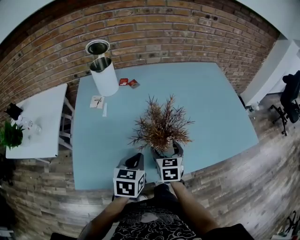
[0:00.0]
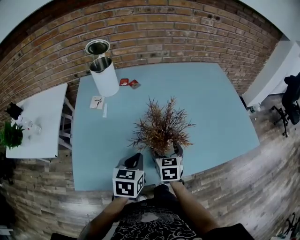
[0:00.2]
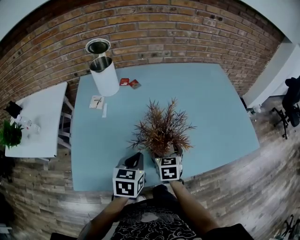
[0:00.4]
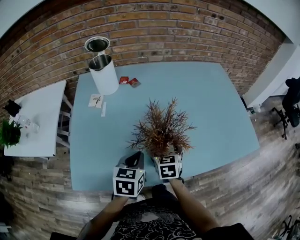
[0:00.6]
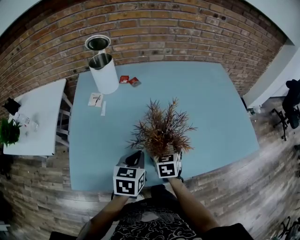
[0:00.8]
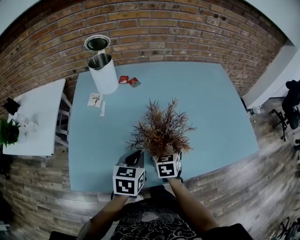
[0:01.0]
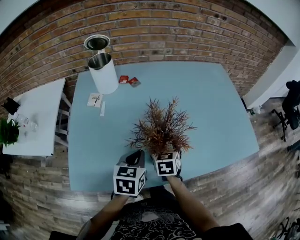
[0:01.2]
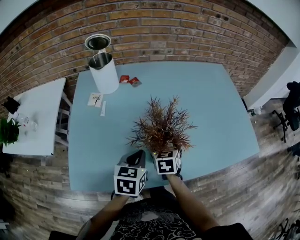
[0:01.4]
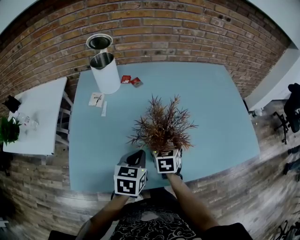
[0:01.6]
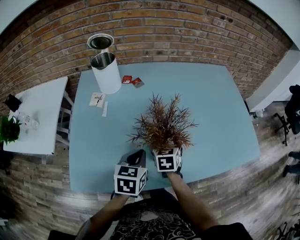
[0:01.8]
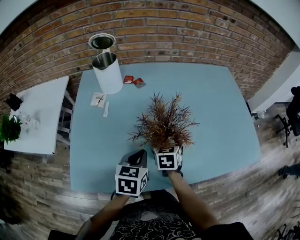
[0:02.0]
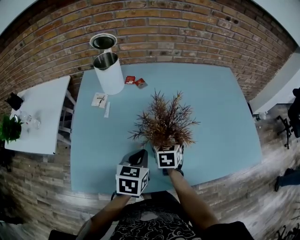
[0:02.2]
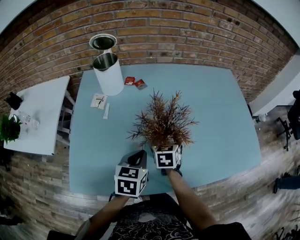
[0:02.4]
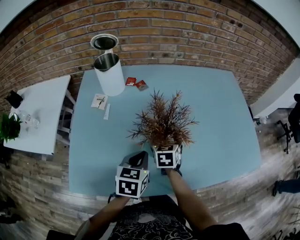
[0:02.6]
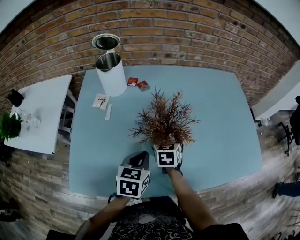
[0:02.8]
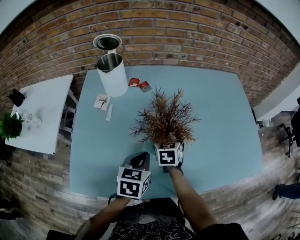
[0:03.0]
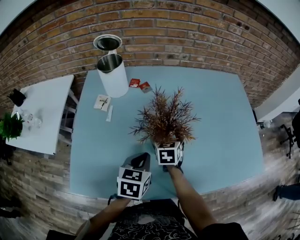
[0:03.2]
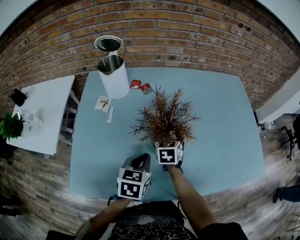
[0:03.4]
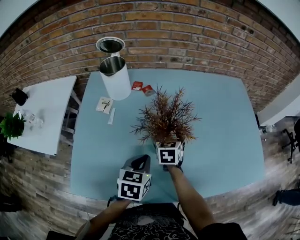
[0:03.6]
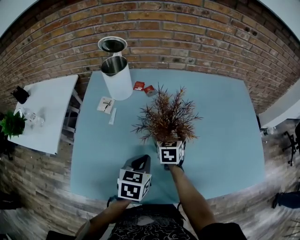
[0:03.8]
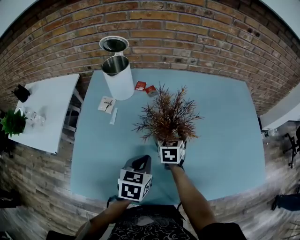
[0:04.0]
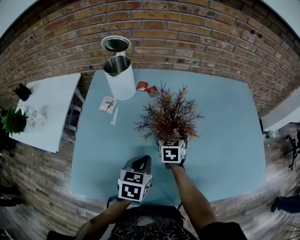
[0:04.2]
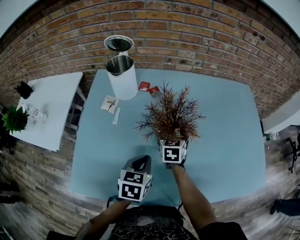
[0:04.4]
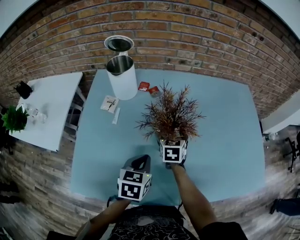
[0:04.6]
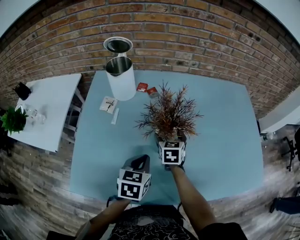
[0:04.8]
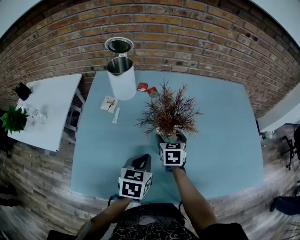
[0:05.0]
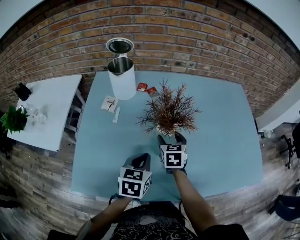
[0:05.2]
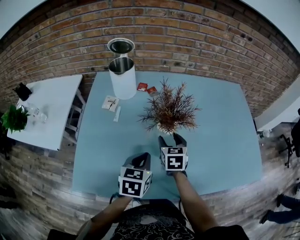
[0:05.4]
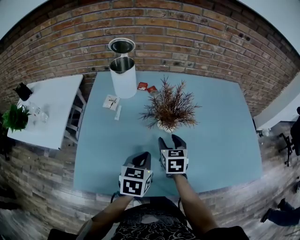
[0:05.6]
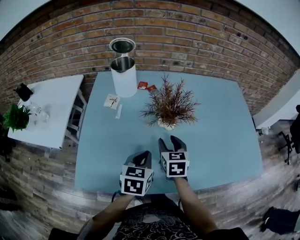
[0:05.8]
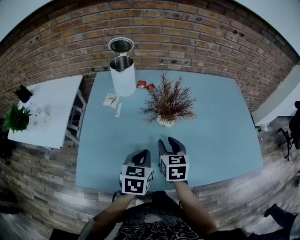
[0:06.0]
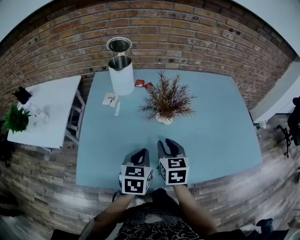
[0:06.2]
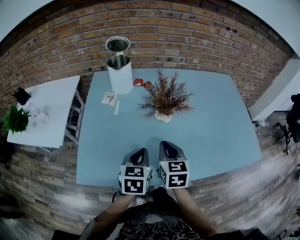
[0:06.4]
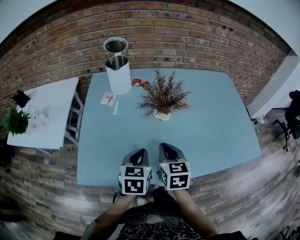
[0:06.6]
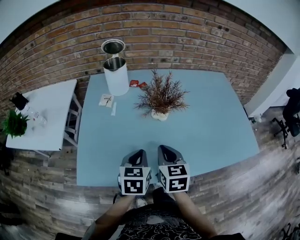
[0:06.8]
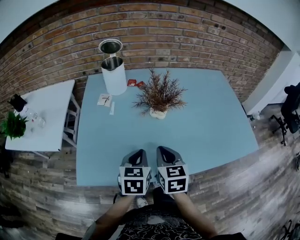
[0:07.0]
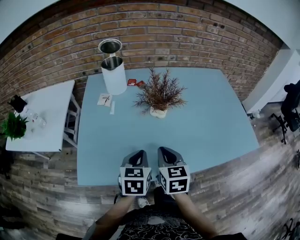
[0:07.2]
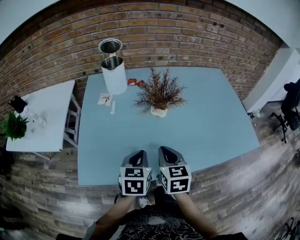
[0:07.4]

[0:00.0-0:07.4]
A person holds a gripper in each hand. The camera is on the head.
0:00.0 to 0:01.4: The right gripper moves roughly 5 cm.
0:01.4 to 0:03.0: The right gripper goes some 10 cm forward.
0:03.0 to 0:04.4: The right gripper moves forward, about 5 cm.
0:04.4 to 0:06.0: The right gripper moves backward and upward, approximately 15 cm, and closes up. Meanwhile the left gripper travels backward by about 5 cm.
0:06.0 to 0:07.4: The left gripper is displaced backward by approximately 5 cm, while the right gripper is displaced backward by some 10 cm.

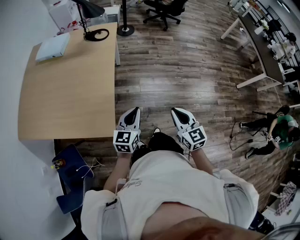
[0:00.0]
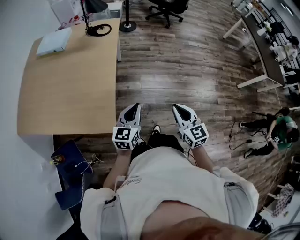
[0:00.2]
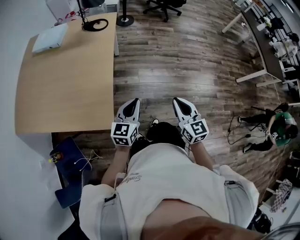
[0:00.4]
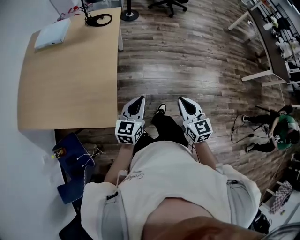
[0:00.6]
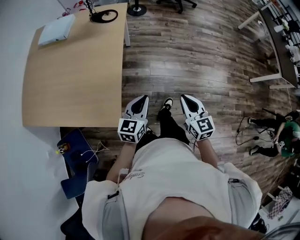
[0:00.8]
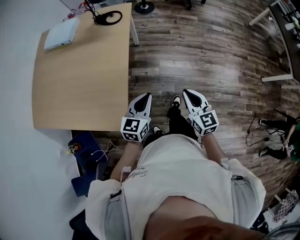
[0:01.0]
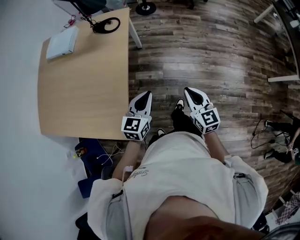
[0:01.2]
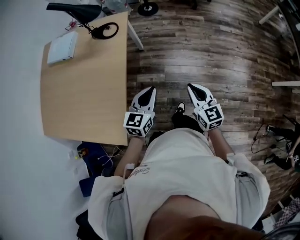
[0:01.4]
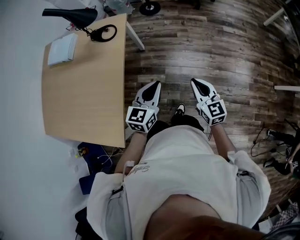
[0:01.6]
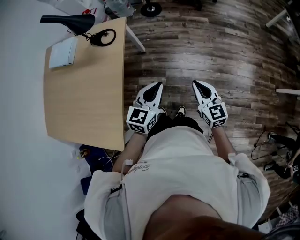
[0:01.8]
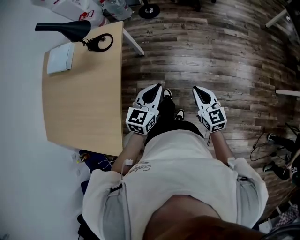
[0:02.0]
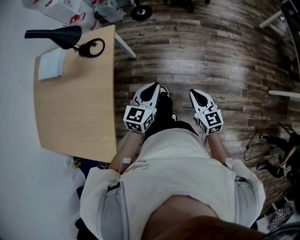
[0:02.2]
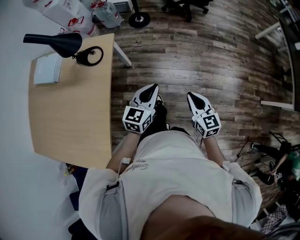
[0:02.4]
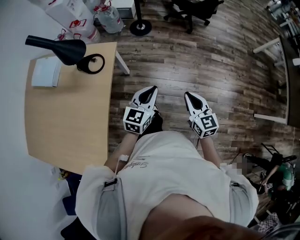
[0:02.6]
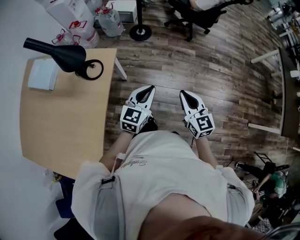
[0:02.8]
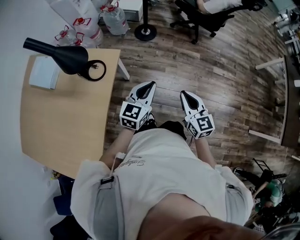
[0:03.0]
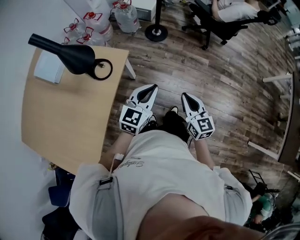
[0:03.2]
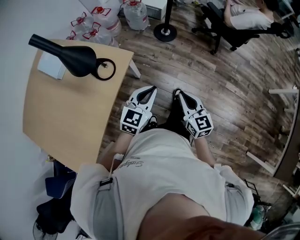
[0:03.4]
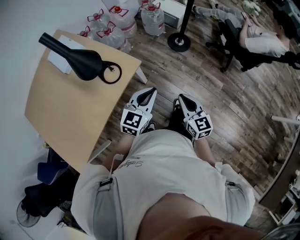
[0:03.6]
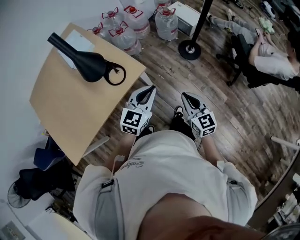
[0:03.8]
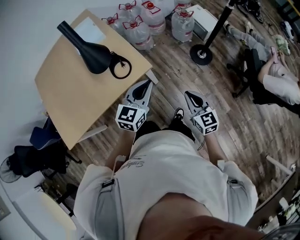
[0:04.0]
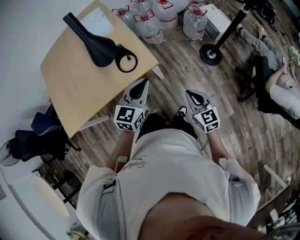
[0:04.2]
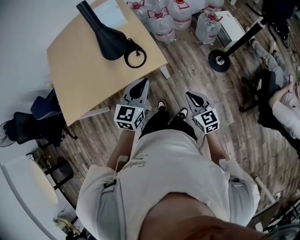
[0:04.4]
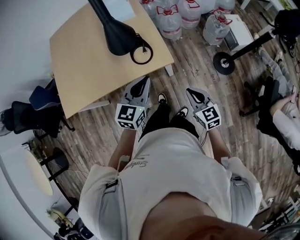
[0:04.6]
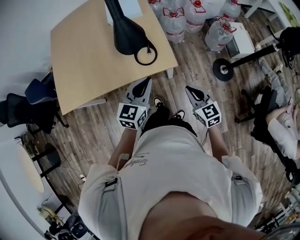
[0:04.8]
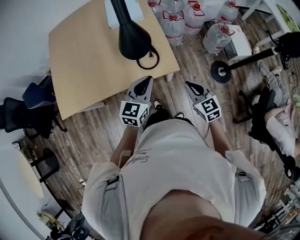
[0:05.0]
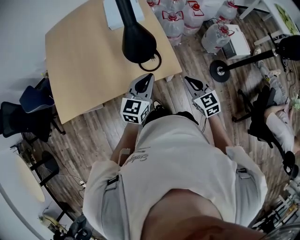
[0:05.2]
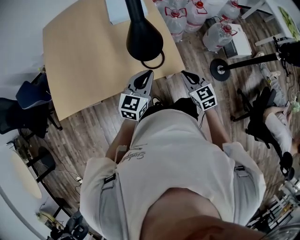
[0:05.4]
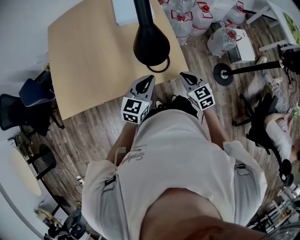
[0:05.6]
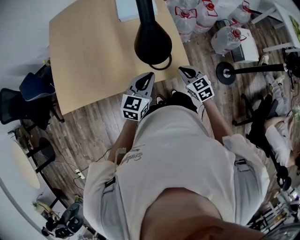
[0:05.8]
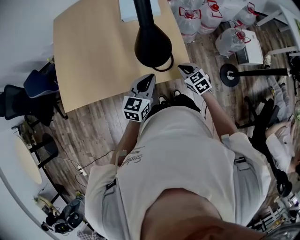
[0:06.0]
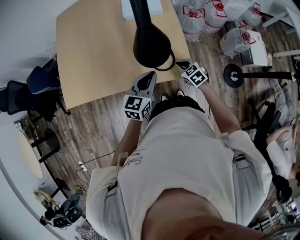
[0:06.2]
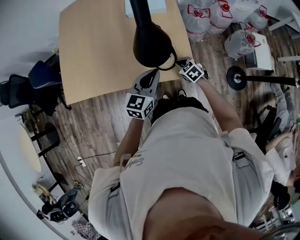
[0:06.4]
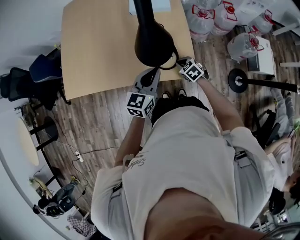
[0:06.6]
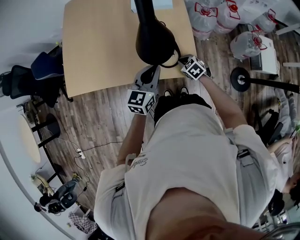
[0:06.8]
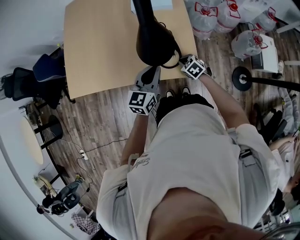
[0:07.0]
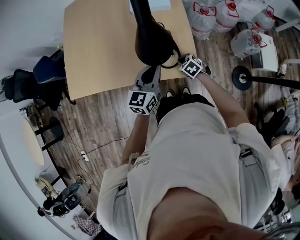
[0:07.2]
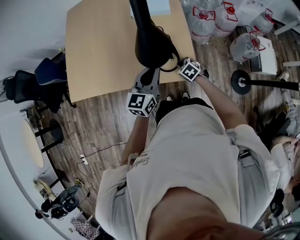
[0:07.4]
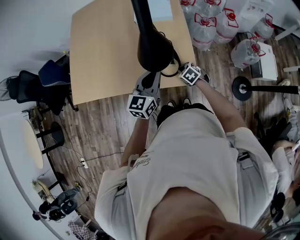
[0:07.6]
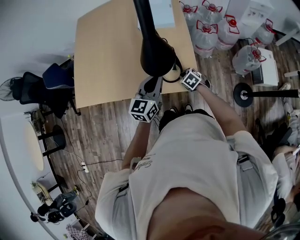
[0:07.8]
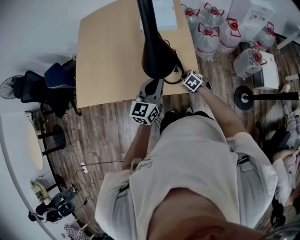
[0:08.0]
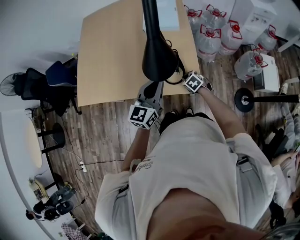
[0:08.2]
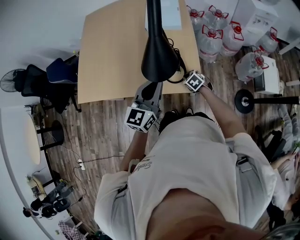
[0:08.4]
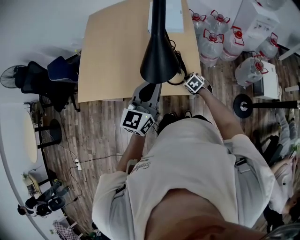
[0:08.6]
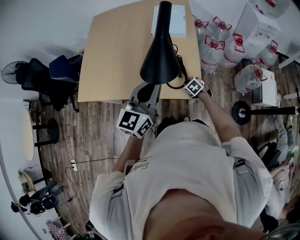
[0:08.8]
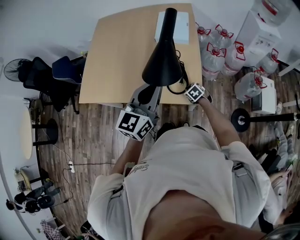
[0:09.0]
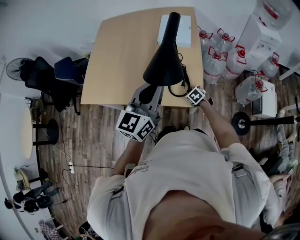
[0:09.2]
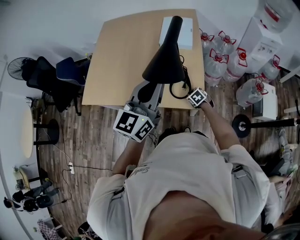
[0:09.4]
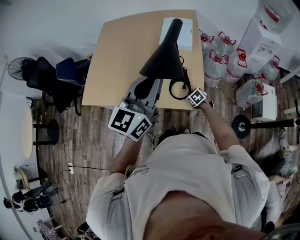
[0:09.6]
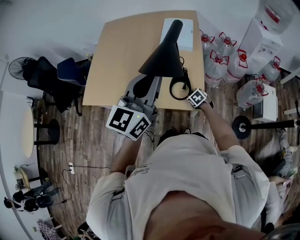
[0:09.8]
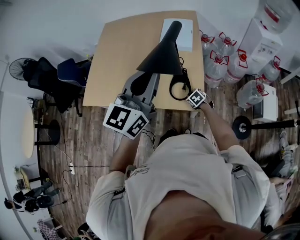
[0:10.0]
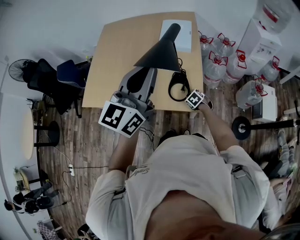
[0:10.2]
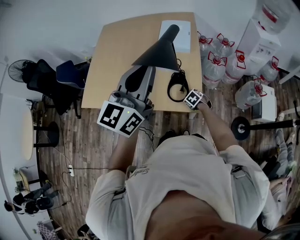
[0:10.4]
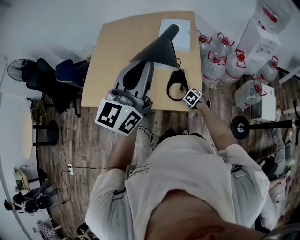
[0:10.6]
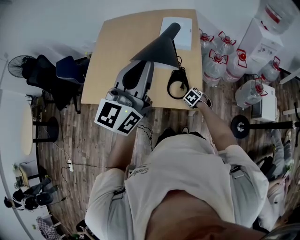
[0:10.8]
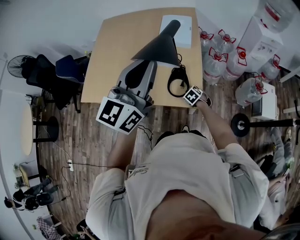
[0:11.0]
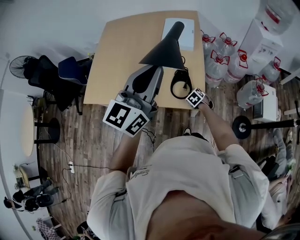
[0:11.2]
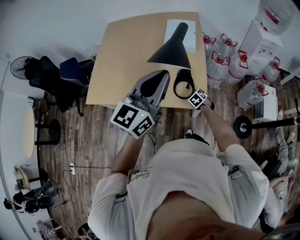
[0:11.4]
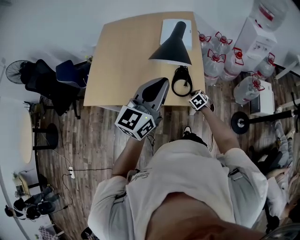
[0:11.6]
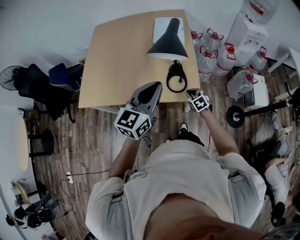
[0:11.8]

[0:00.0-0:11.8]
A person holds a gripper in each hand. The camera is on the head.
0:00.0 to 0:01.4: Both grippers travel together forward, approximately 25 cm.
0:01.4 to 0:03.0: Both grippers travel together forward, approximately 40 cm.
0:03.0 to 0:04.4: The left gripper ends up roughly 20 cm from where it was, and swivels approximately 60 degrees. The right gripper moves some 30 cm, and rotates about 60 degrees.
0:04.4 to 0:06.0: The left gripper moves forward, to the left and downward, roughly 20 cm; the right gripper travels forward and to the left by some 30 cm, and turns by about 30 degrees.
0:06.0 to 0:07.4: The right gripper shifts about 10 cm downward, and turns by some 20 degrees.
0:07.4 to 0:08.8: The left gripper moves upward, about 15 cm.
0:08.8 to 0:10.4: The left gripper moves upward, about 15 cm.
0:10.4 to 0:11.8: The right gripper is displaced upward and backward by approximately 10 cm, and changes its angle by roughly 20 degrees. The left gripper travels downward, backward and to the left by about 15 cm.

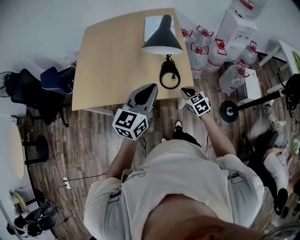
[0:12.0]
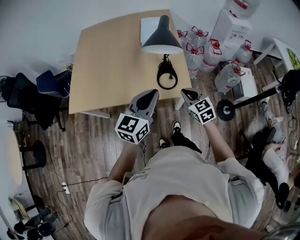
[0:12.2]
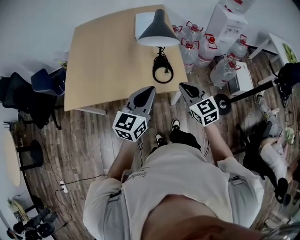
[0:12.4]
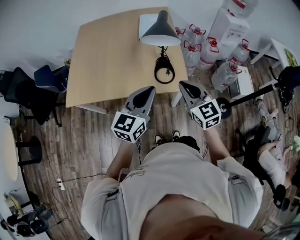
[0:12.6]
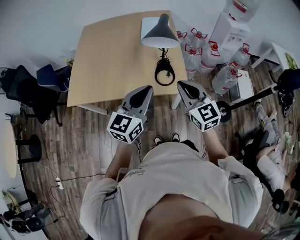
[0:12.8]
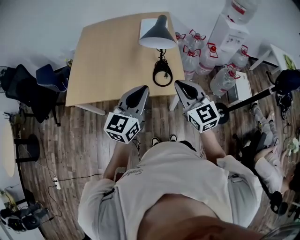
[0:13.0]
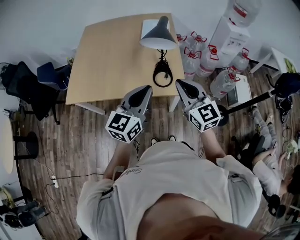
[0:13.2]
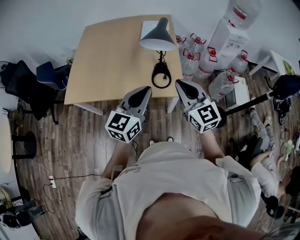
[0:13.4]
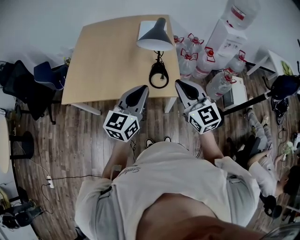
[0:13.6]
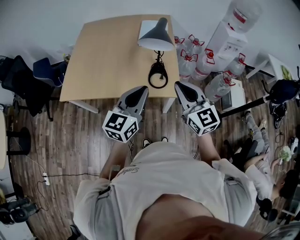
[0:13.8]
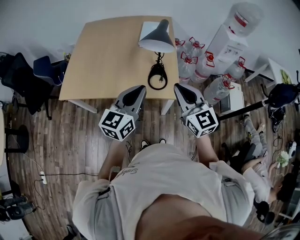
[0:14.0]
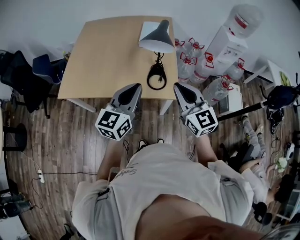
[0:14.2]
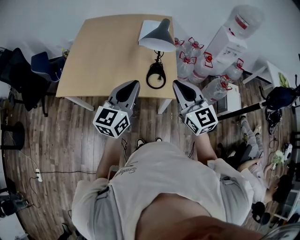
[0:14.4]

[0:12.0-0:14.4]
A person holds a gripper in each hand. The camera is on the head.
0:12.0 to 0:13.2: The right gripper heads upward and backward, covering about 25 cm, and tips its fingers upward by about 30 degrees. The left gripper moves backward, approximately 5 cm.
0:13.2 to 0:14.4: The grippers move only a little.

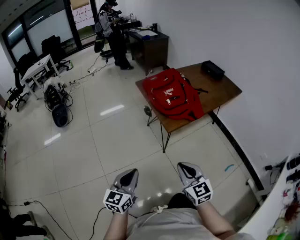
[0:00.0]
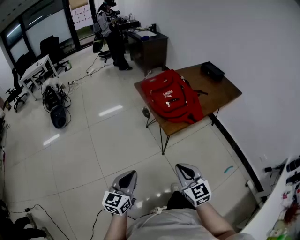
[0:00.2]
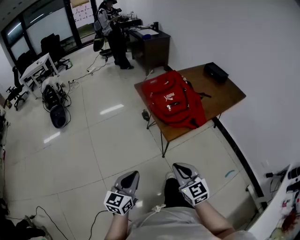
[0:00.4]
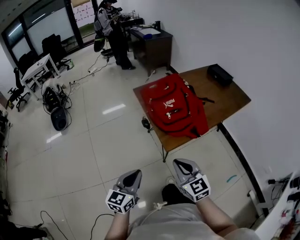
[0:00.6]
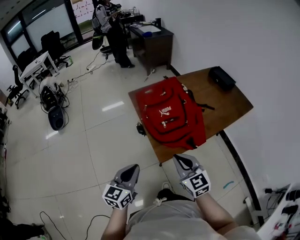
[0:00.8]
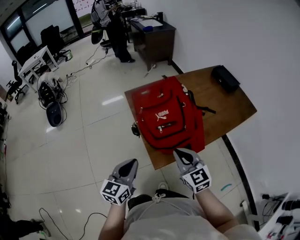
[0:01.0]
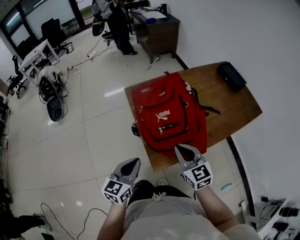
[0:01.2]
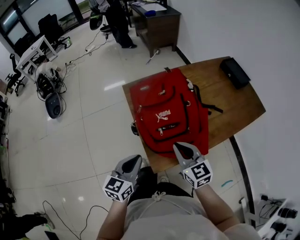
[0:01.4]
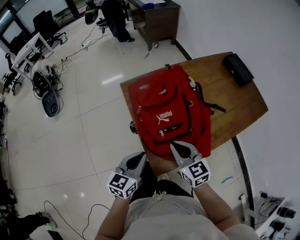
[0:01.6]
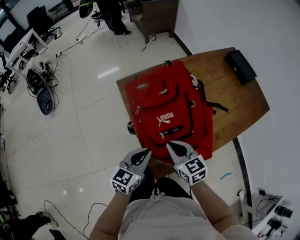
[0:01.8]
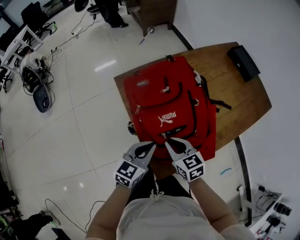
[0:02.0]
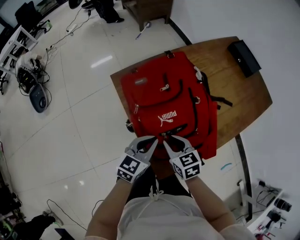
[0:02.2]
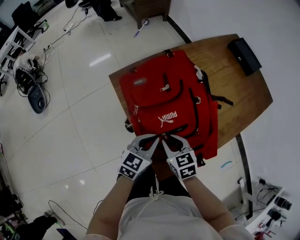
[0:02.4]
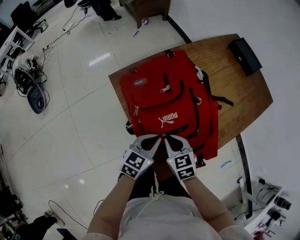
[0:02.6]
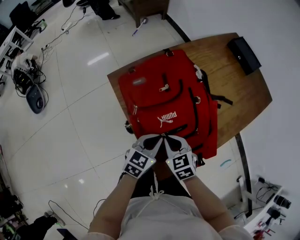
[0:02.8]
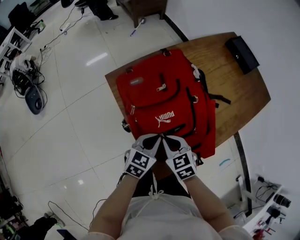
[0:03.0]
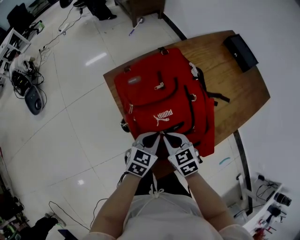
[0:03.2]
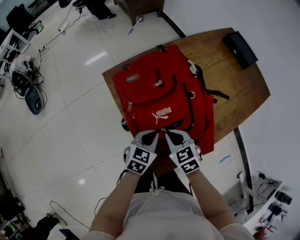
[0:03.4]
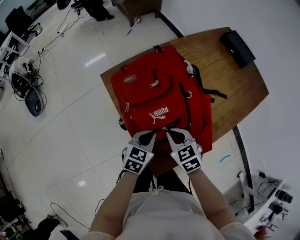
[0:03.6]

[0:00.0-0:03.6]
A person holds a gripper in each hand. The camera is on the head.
0:00.0 to 0:01.8: The pair of grippers is taken forward, approximately 40 cm. The right gripper changes its angle by some 20 degrees.
0:01.8 to 0:03.6: The left gripper travels downward and forward by some 10 cm; the right gripper is displaced downward by roughly 5 cm, turns by some 20 degrees, and opens and closes again.
